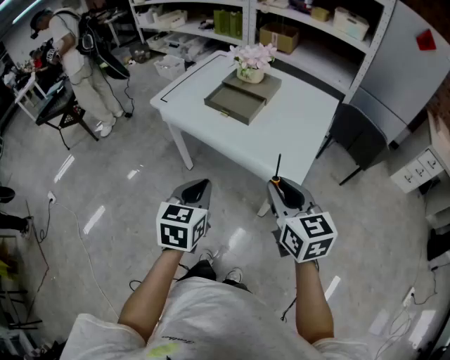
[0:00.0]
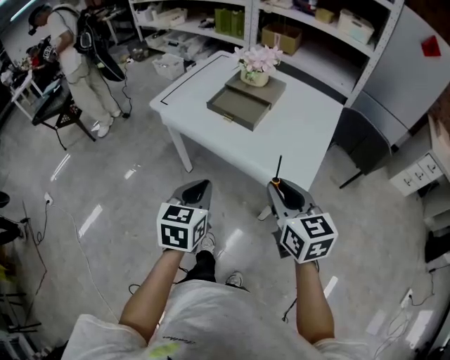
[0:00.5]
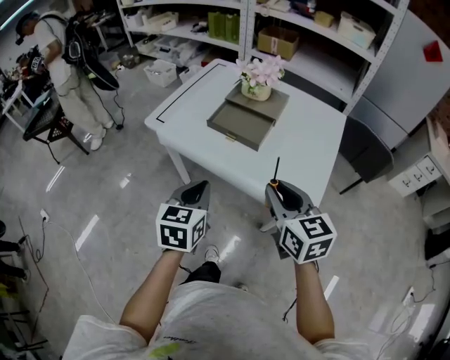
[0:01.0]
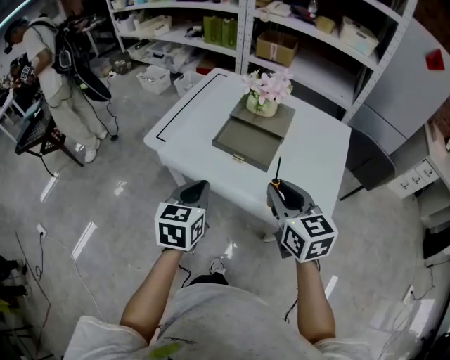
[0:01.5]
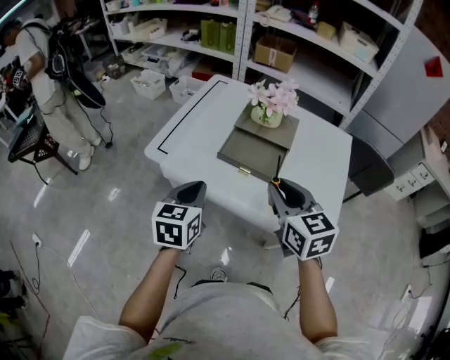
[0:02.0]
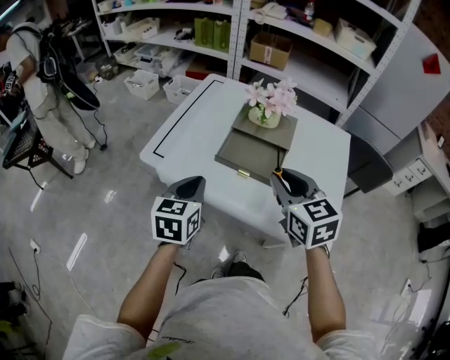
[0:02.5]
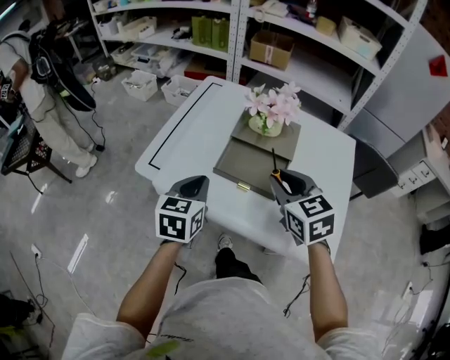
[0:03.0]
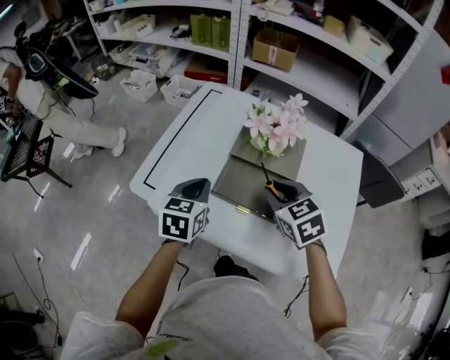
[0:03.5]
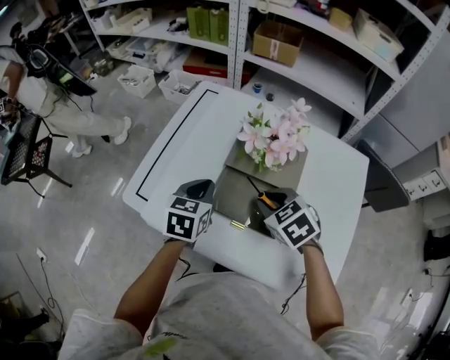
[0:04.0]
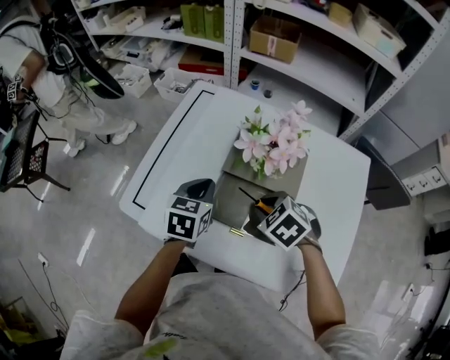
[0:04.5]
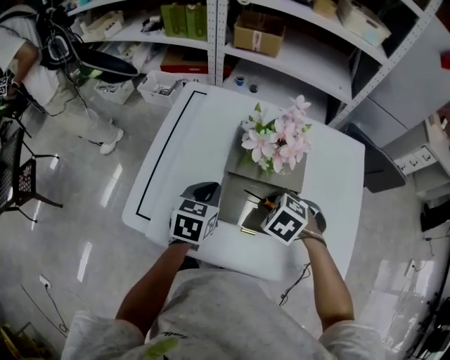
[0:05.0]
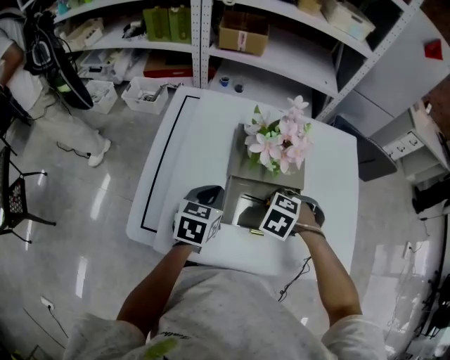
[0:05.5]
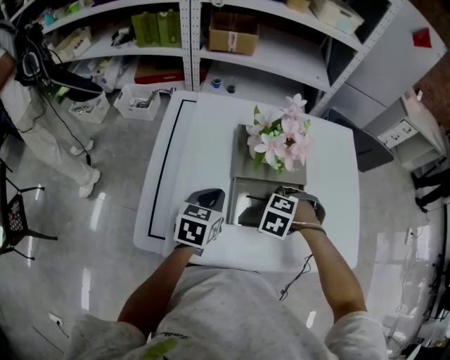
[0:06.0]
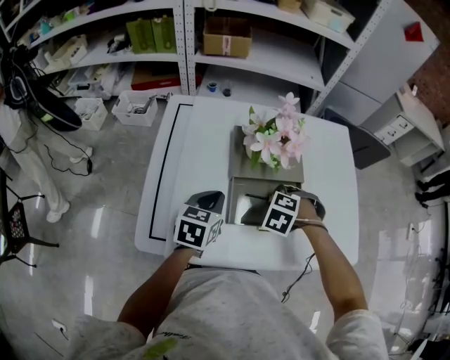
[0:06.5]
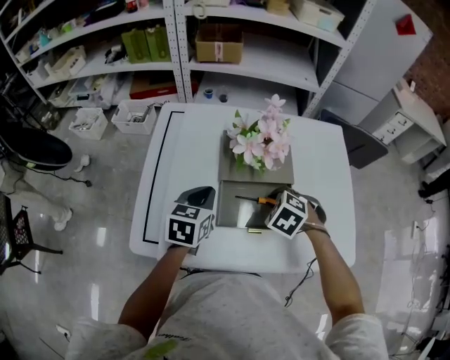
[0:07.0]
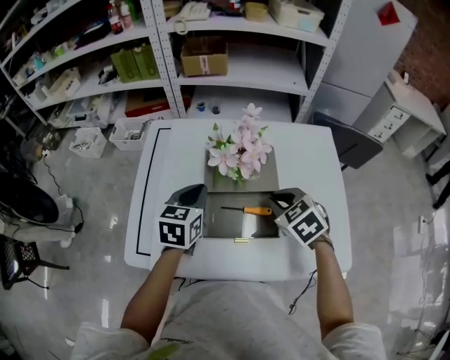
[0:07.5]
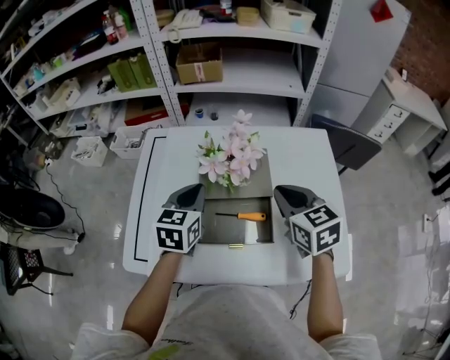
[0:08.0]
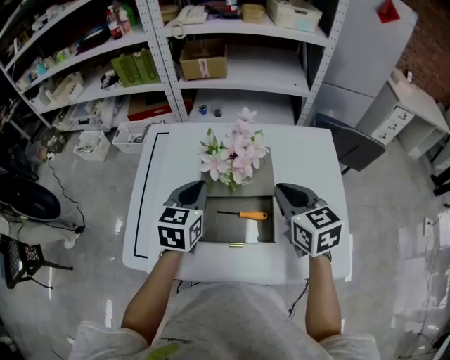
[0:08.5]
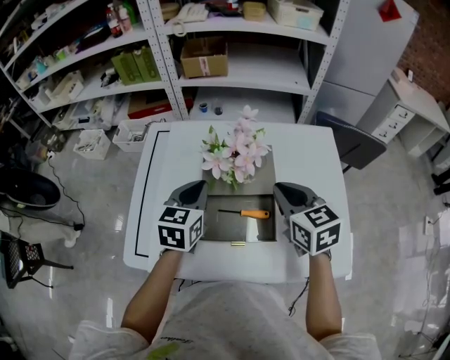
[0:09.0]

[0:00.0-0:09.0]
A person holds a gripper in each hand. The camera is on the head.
0:00.0 to 0:02.0: Both grippers move forward and to the left, roughly 30 cm.
0:02.0 to 0:04.5: The right gripper travels forward and downward by some 25 cm, and points its fingers approximately 40 degrees further downward, while the left gripper travels forward by about 25 cm.
0:07.0 to 0:09.0: The right gripper heads upward and to the right, covering about 15 cm, and angles its fingers upward, by approximately 40 degrees. Meanwhile the left gripper goes about 10 cm upward and to the right.
